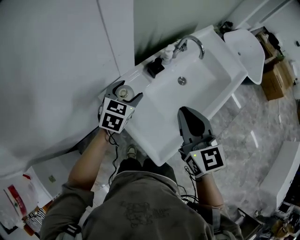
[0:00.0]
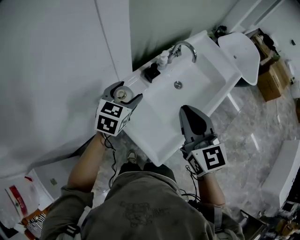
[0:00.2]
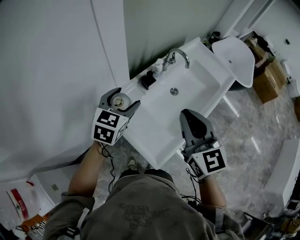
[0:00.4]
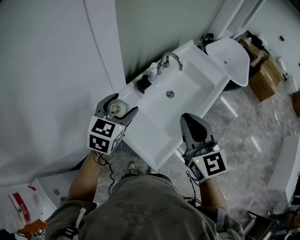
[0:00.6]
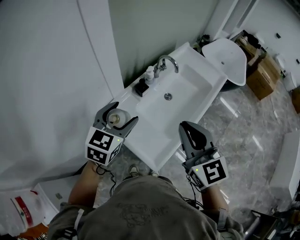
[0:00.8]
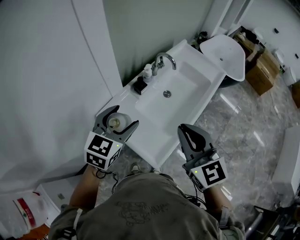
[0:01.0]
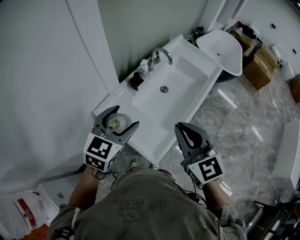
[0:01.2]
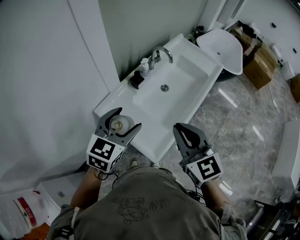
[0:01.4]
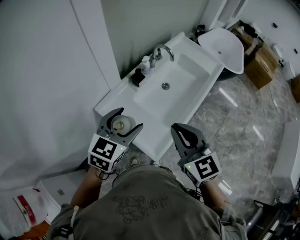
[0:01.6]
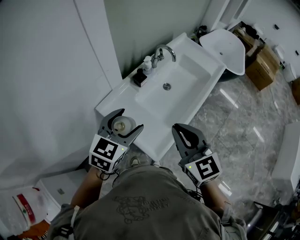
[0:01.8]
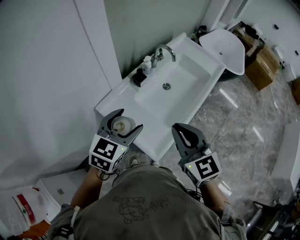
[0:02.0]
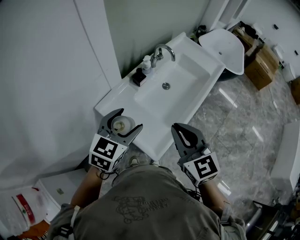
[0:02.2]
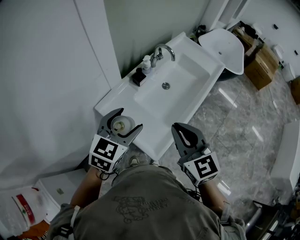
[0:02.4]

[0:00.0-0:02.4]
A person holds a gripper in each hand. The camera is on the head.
0:00.0 to 0:01.2: The right gripper is displaced backward, upward and to the right by about 15 cm; the left gripper moves upward, backward and to the right, about 20 cm.
0:01.2 to 0:02.4: The grippers move only a little.

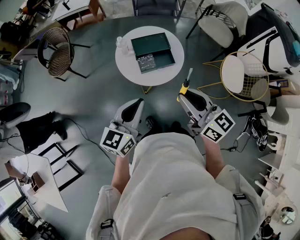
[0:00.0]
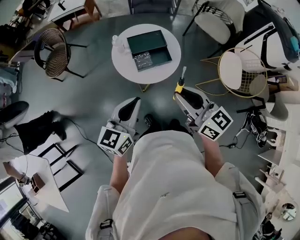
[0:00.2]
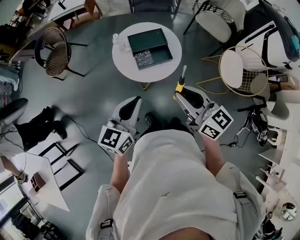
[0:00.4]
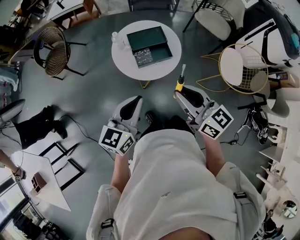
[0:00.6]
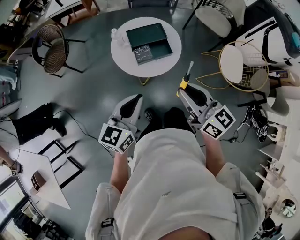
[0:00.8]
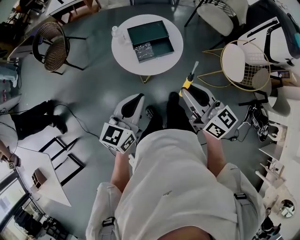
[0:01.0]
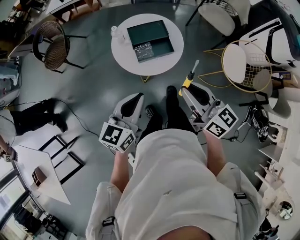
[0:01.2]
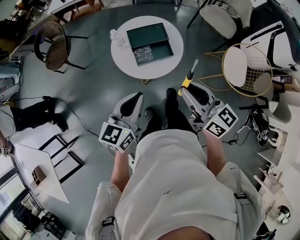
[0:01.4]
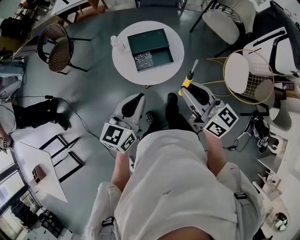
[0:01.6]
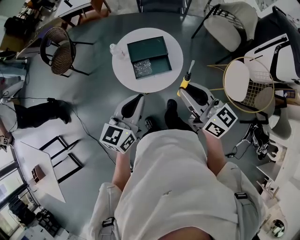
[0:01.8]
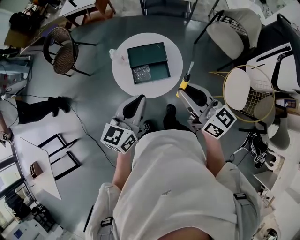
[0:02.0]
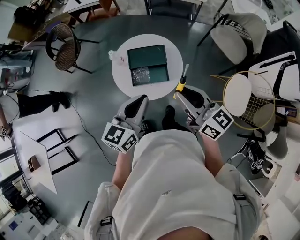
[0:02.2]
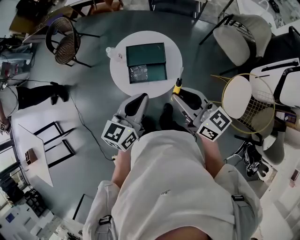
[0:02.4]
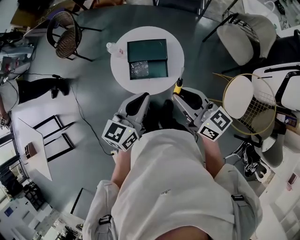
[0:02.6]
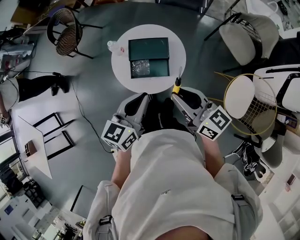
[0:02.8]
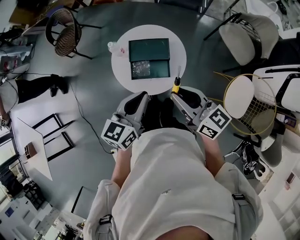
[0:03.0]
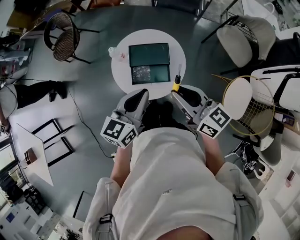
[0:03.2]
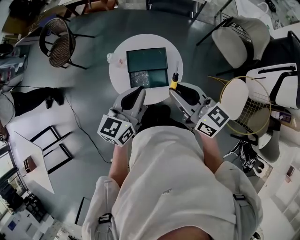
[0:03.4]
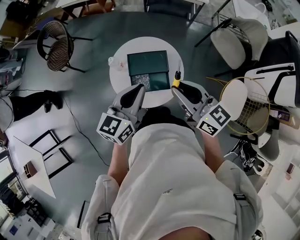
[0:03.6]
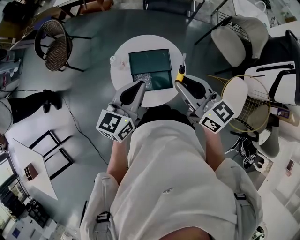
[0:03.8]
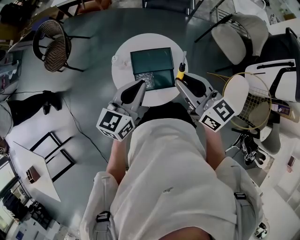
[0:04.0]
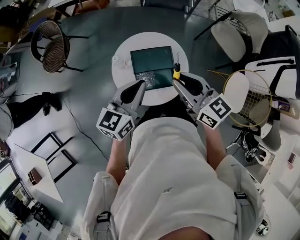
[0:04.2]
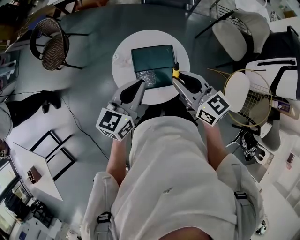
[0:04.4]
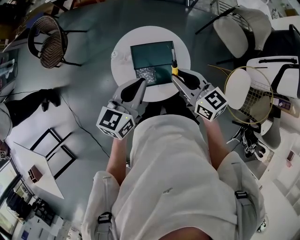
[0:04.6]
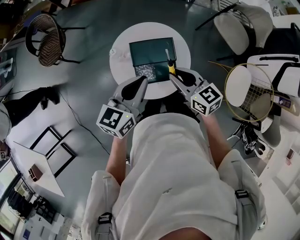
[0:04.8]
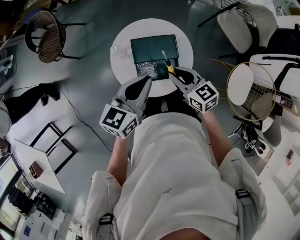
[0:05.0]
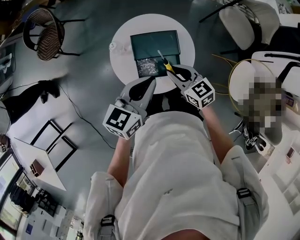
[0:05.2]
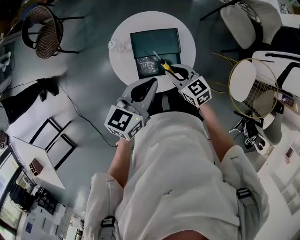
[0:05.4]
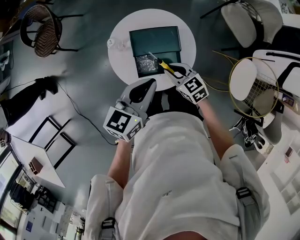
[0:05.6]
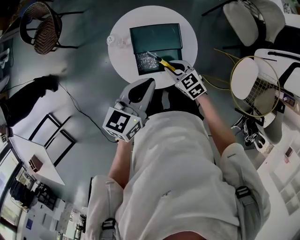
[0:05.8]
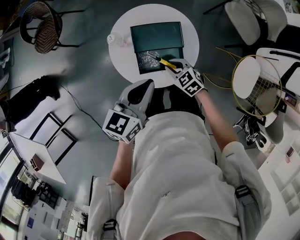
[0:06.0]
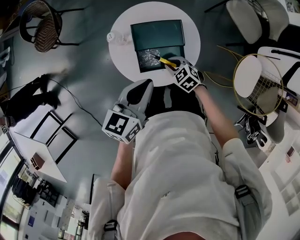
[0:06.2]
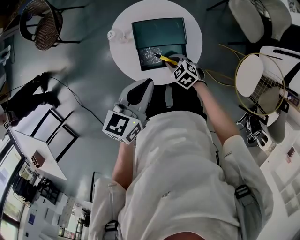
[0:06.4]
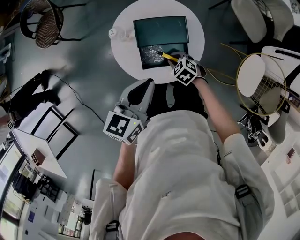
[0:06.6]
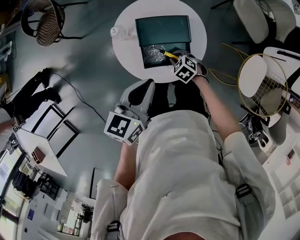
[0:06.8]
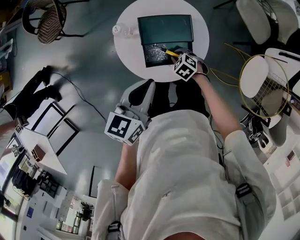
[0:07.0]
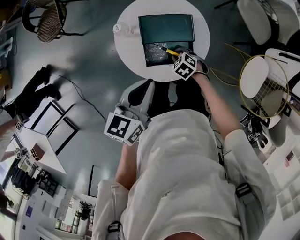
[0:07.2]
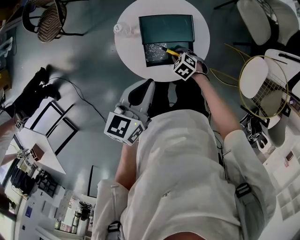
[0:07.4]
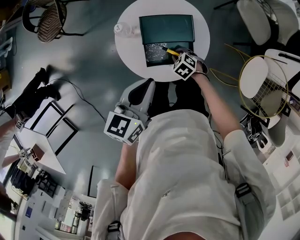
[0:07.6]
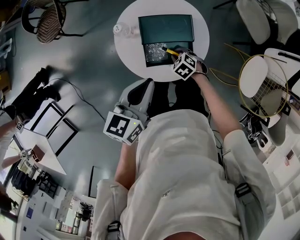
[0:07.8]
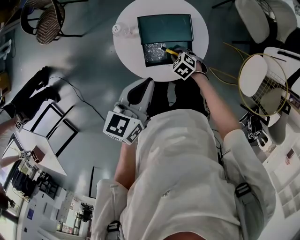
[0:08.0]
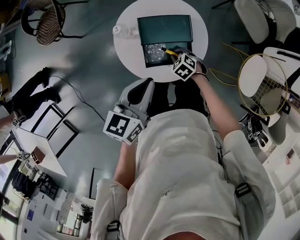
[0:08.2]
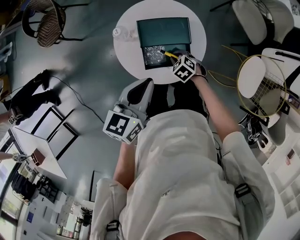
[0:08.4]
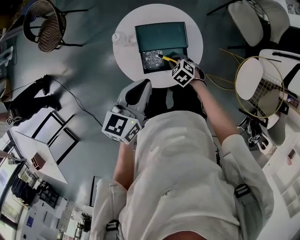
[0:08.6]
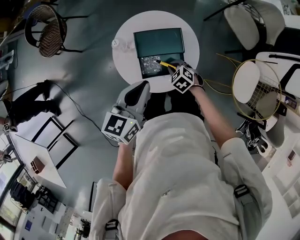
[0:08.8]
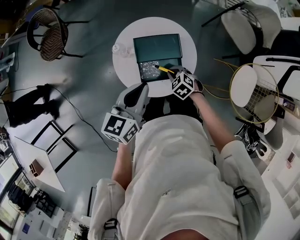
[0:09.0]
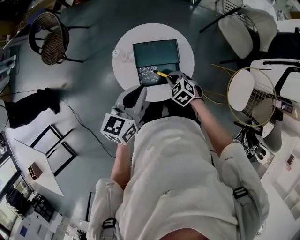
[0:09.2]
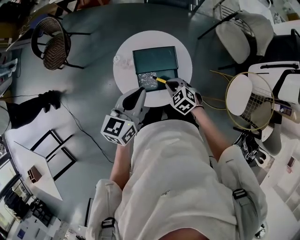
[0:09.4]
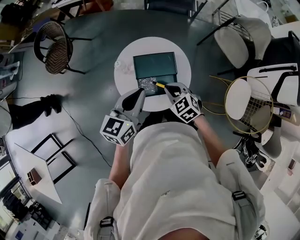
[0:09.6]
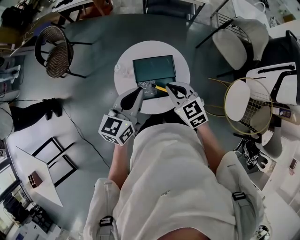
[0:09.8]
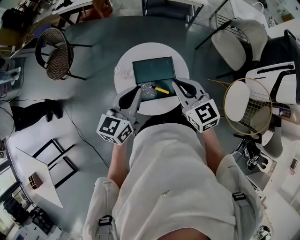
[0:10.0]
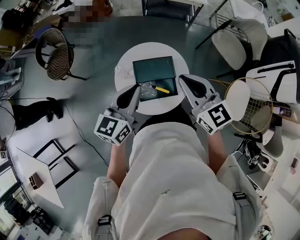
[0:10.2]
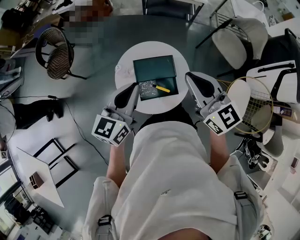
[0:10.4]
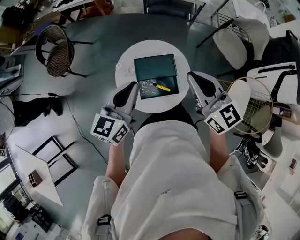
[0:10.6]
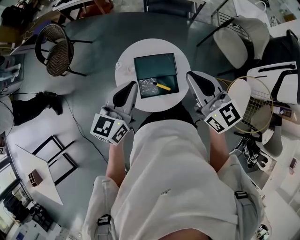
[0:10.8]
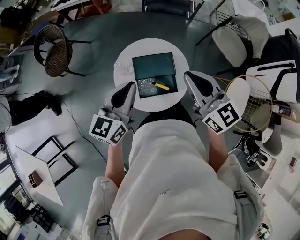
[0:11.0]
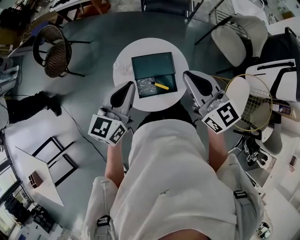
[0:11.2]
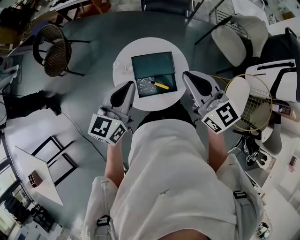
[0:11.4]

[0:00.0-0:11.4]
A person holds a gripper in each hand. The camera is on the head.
0:00.0 to 0:01.4: There are only small adjustments of the grippers.
0:01.4 to 0:02.8: The right gripper moves forward and to the right, about 15 cm. The left gripper heads to the right and forward, covering about 20 cm.
0:02.8 to 0:04.2: The grippers both shift forward and to the left by roughly 15 cm.
0:04.2 to 0:05.6: The right gripper travels downward by roughly 25 cm, and changes its angle by approximately 30 degrees. Meanwhile the left gripper moves downward, some 5 cm.
0:05.6 to 0:07.2: The right gripper travels downward by approximately 15 cm, and angles its fingers downward, by some 30 degrees. Meanwhile the left gripper shifts by some 5 cm.
0:07.2 to 0:08.6: There are only small adjustments of the grippers.
0:08.6 to 0:10.0: The right gripper moves upward, about 35 cm, and points its fingers roughly 50 degrees further upward, while the left gripper heads upward, covering roughly 10 cm.
0:10.0 to 0:11.4: The right gripper shifts some 5 cm upward.

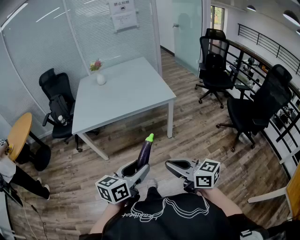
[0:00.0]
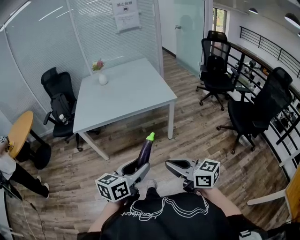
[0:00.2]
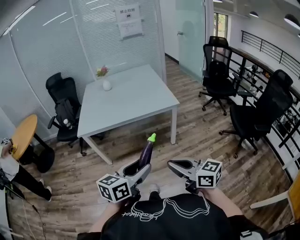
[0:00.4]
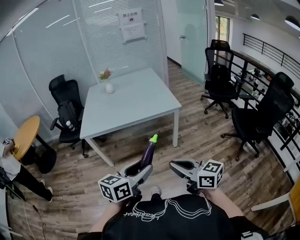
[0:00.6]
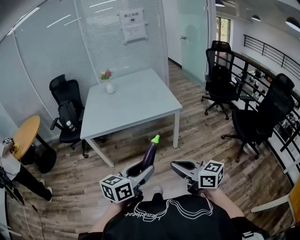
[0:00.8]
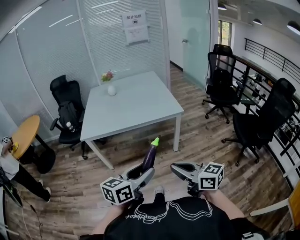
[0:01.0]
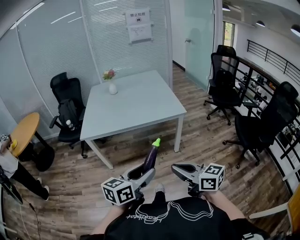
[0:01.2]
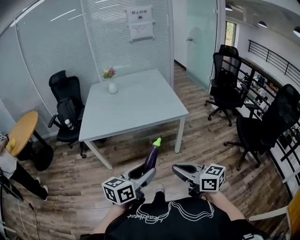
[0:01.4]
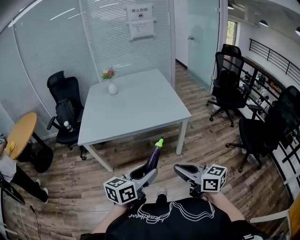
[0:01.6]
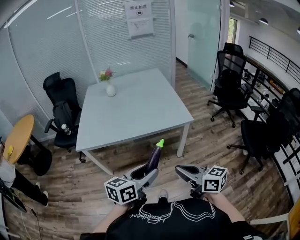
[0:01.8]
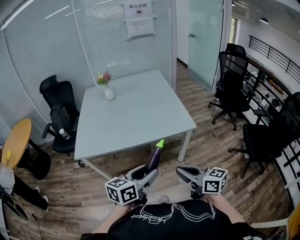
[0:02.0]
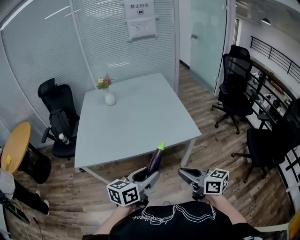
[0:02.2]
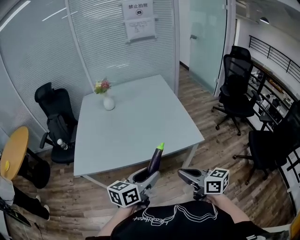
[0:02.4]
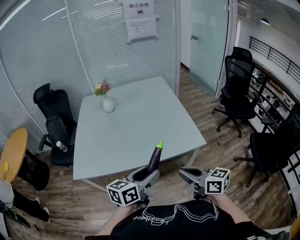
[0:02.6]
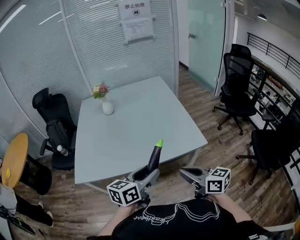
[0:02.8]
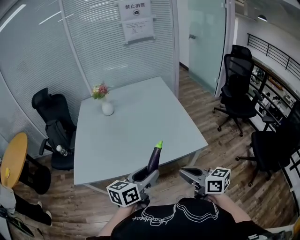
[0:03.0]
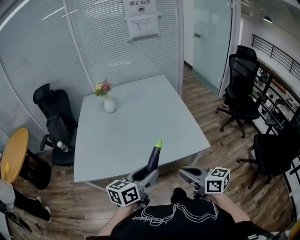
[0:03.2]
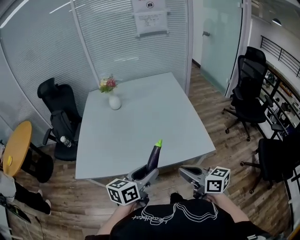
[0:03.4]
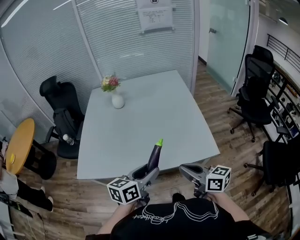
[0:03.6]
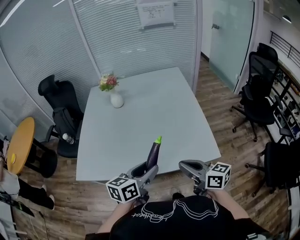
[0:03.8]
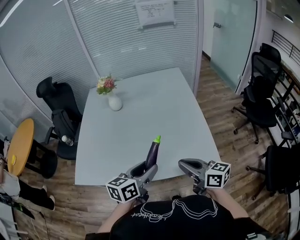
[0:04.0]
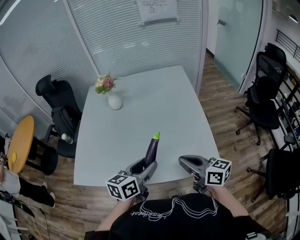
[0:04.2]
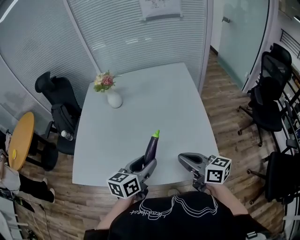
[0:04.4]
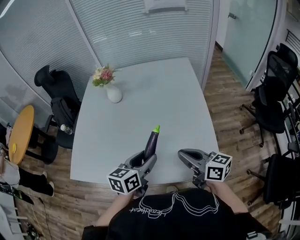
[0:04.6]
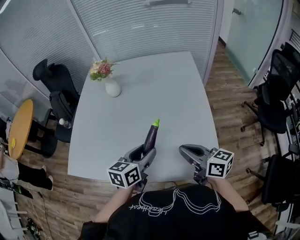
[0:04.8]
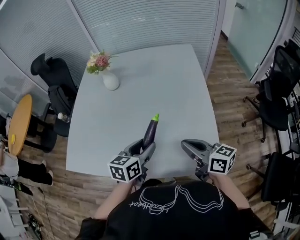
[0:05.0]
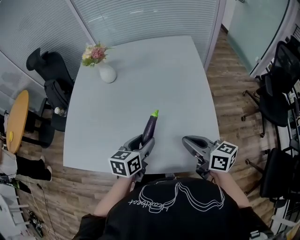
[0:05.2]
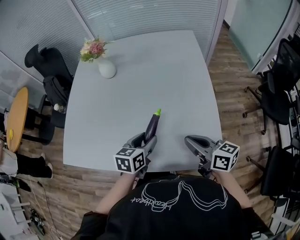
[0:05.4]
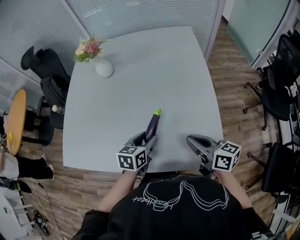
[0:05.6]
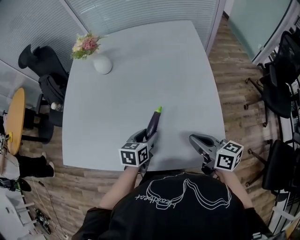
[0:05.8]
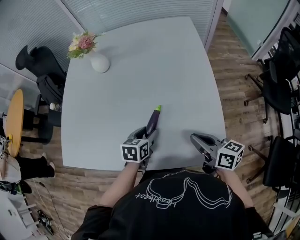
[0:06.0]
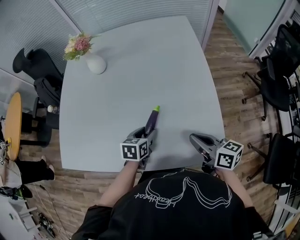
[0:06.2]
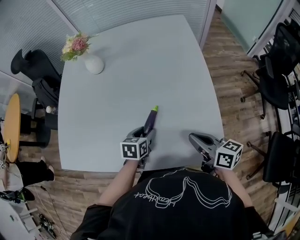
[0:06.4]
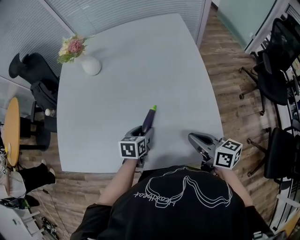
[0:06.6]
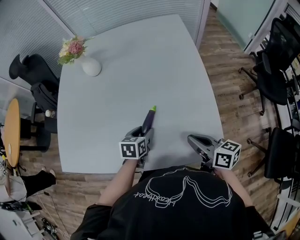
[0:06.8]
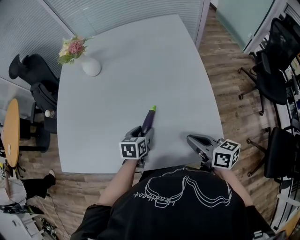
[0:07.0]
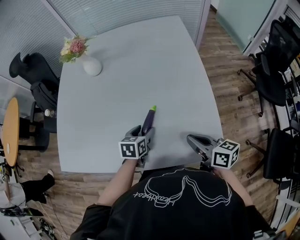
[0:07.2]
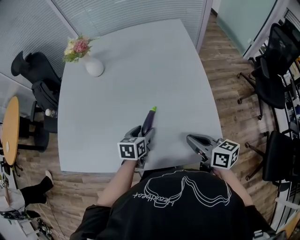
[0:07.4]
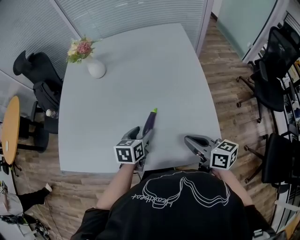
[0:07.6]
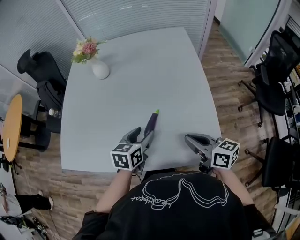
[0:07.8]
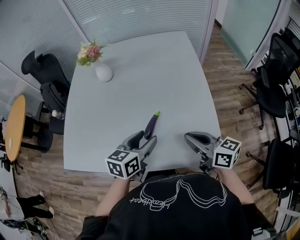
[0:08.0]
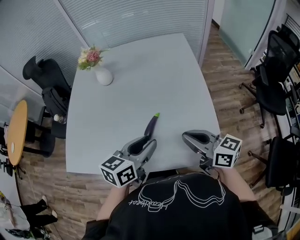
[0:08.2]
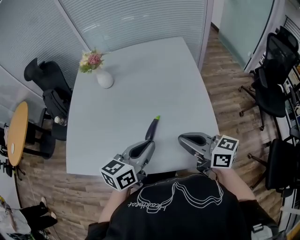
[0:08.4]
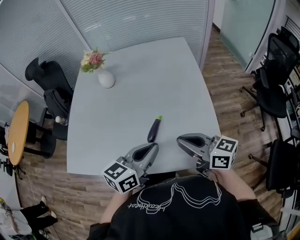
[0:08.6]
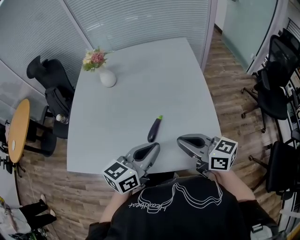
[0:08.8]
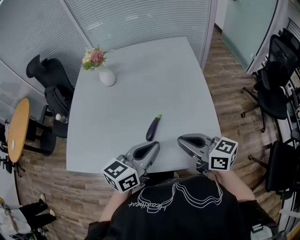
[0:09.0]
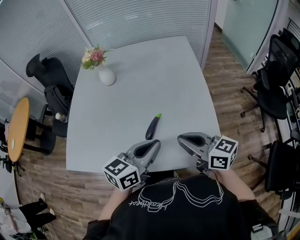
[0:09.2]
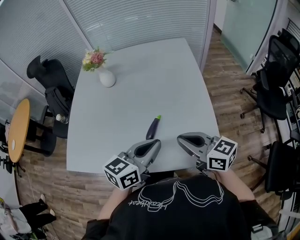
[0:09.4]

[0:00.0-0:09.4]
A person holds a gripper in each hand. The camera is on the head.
0:00.0 to 0:01.6: Both grippers travel together forward, roughly 10 cm.
0:01.6 to 0:03.2: Both grippers move forward, some 35 cm.
0:03.2 to 0:04.8: Both grippers move forward, some 30 cm. The left gripper rotates approximately 20 degrees.
0:04.8 to 0:06.2: The left gripper goes roughly 20 cm downward, and changes its angle by approximately 20 degrees. Meanwhile the right gripper goes approximately 10 cm downward.
0:06.2 to 0:07.8: The left gripper goes some 10 cm upward.
0:07.8 to 0:09.4: The left gripper heads upward and backward, covering roughly 15 cm, rotates roughly 20 degrees, and closes, while the right gripper goes approximately 5 cm upward.
